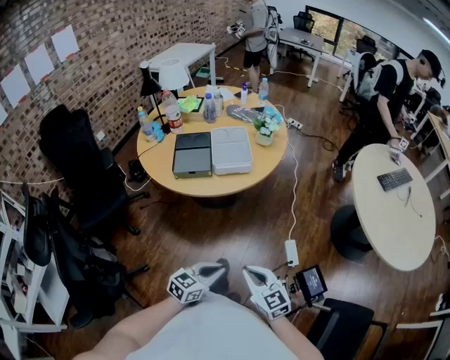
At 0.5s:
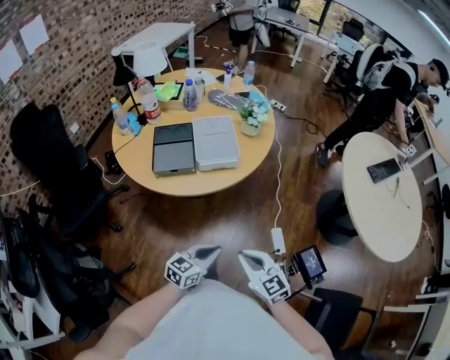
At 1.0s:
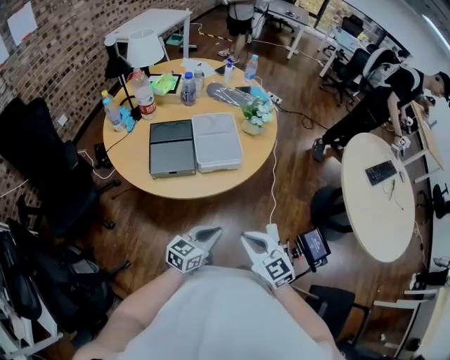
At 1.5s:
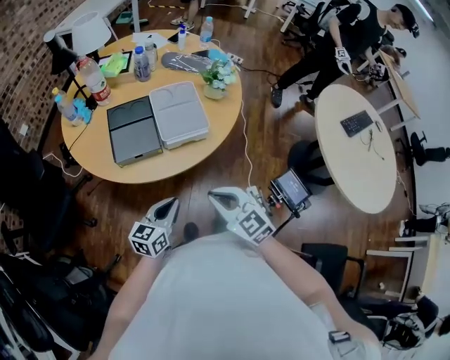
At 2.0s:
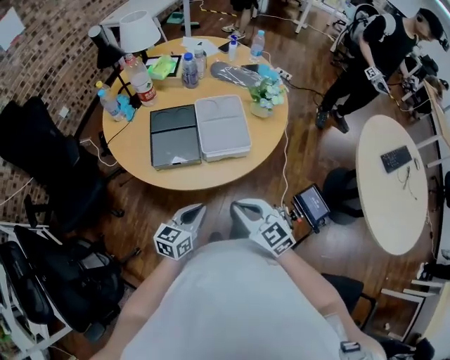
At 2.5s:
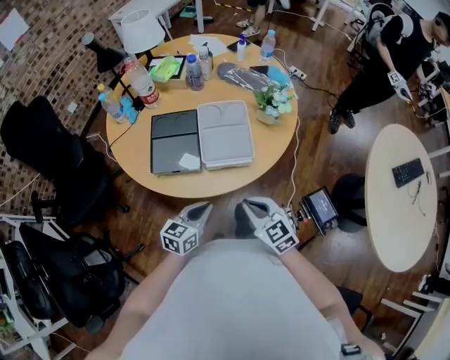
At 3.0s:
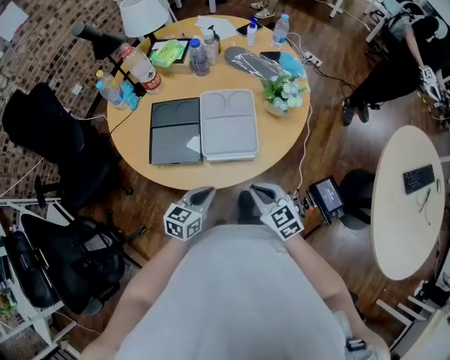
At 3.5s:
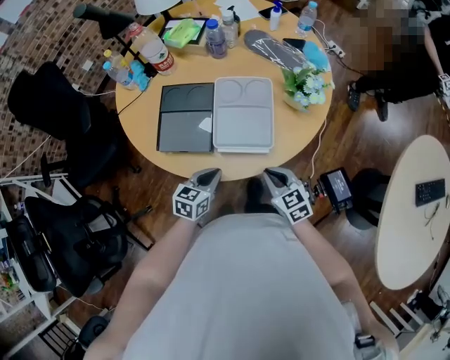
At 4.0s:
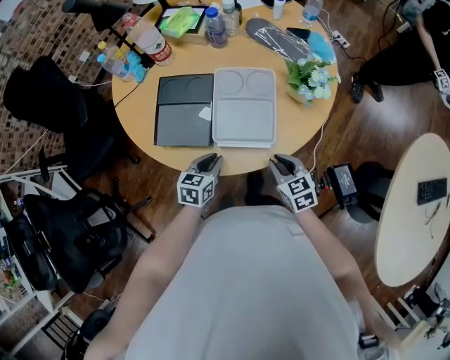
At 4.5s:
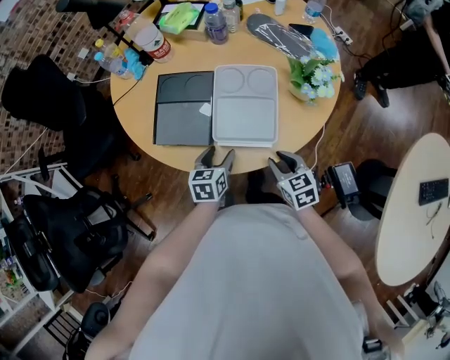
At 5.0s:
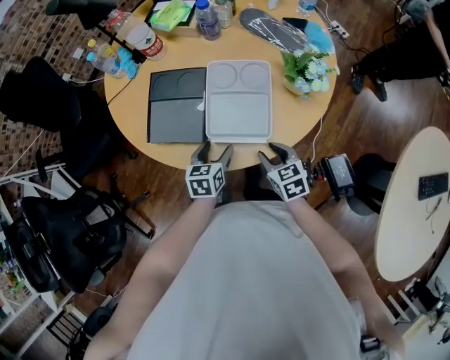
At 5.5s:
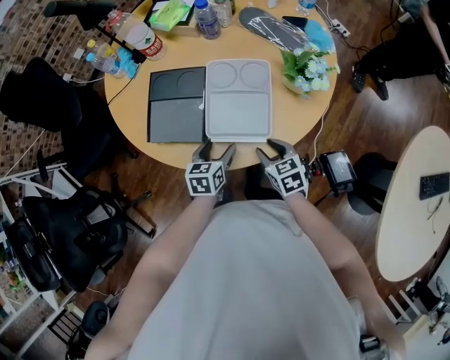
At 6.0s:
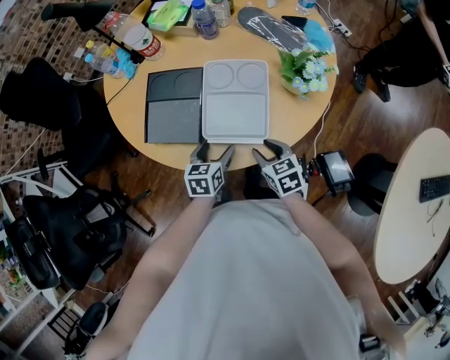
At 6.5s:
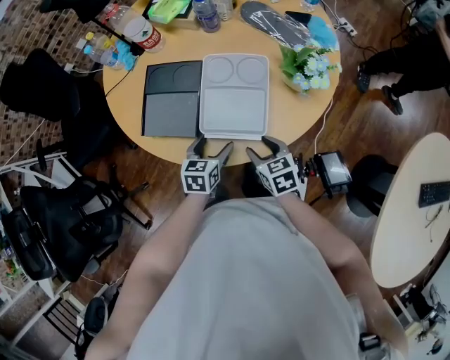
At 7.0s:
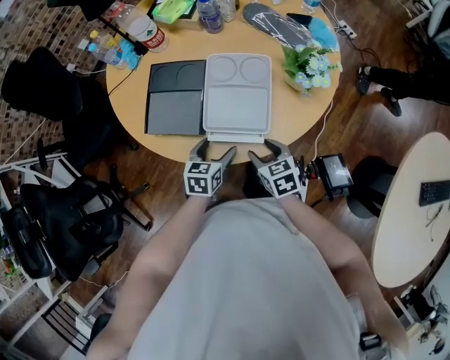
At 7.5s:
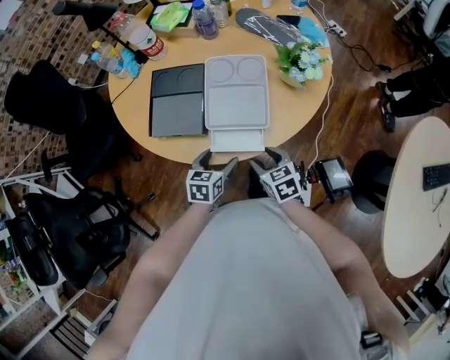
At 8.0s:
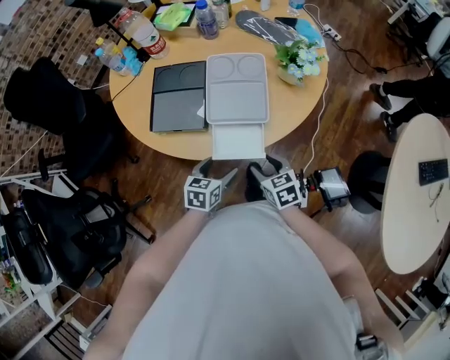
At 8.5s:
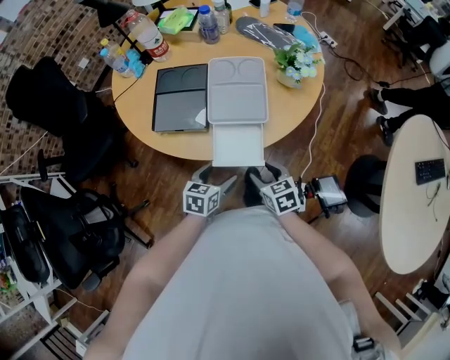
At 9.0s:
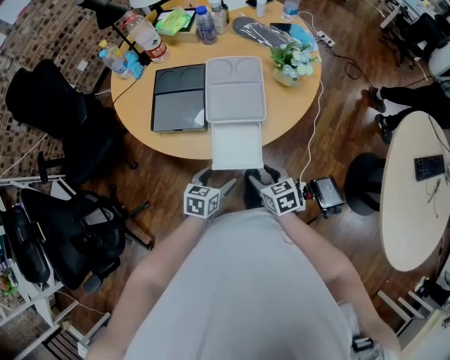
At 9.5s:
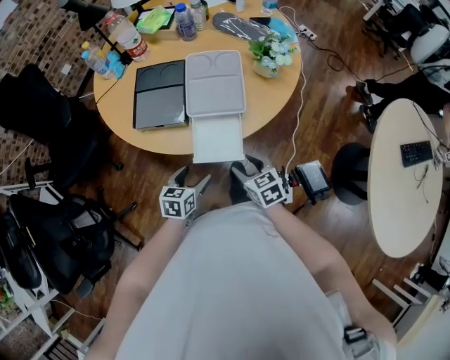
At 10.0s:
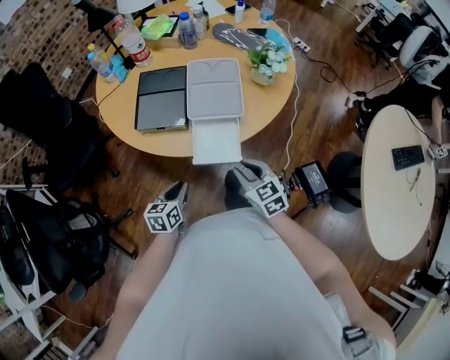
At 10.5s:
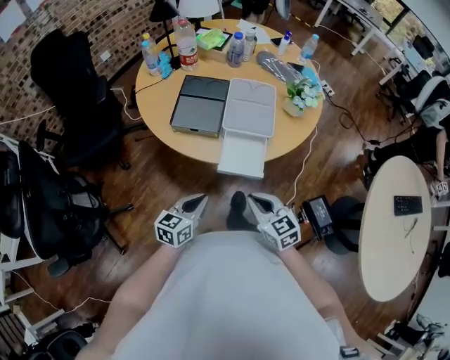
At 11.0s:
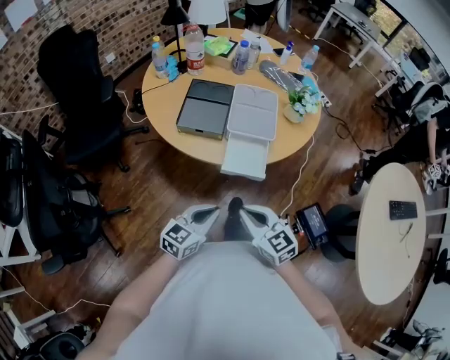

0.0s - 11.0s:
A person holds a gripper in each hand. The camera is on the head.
0.0s - 2.0s: Both grippers travel together forward, about 30 cm.
2.0s - 3.5s: The left gripper travels forward and downward by some 15 cm. Meanwhile the right gripper moves forward, downward and to the right, about 20 cm.
3.5s - 5.5s: Both grippers travel together forward, some 5 cm. The right gripper opens up; the left gripper opens up.
5.5s - 7.5s: The two grippers go some 5 cm backward.
7.5s - 9.0s: The two grippers go about 10 cm backward.
9.0s - 11.0s: The right gripper travels upward, backward and to the left by some 25 cm, changes its angle by about 30 degrees, and closes up; the left gripper moves backward and upward, about 20 cm, turns by about 30 degrees, and closes.

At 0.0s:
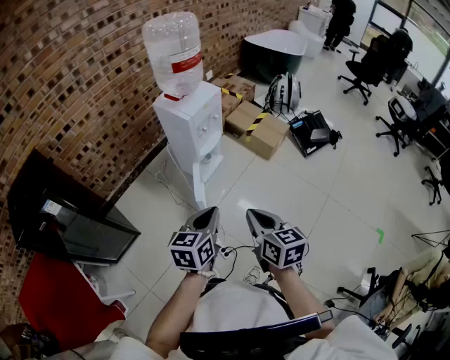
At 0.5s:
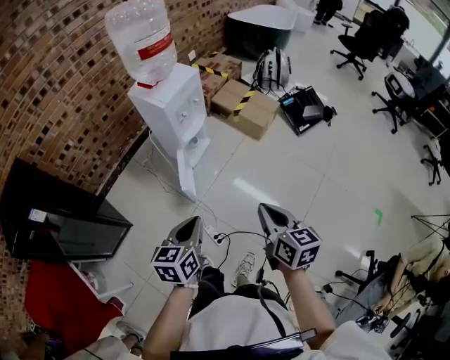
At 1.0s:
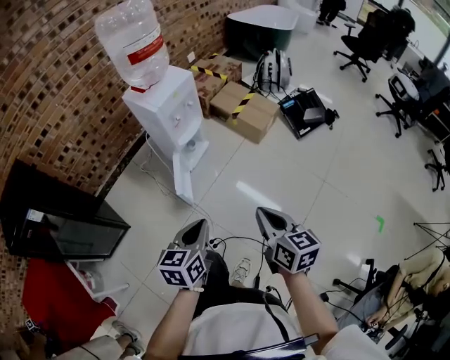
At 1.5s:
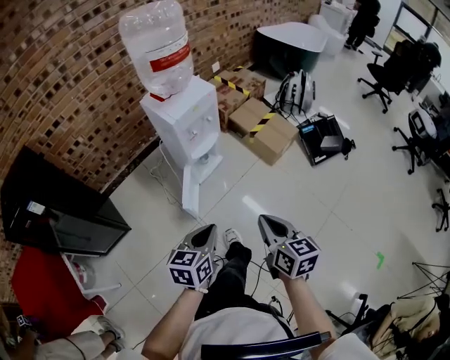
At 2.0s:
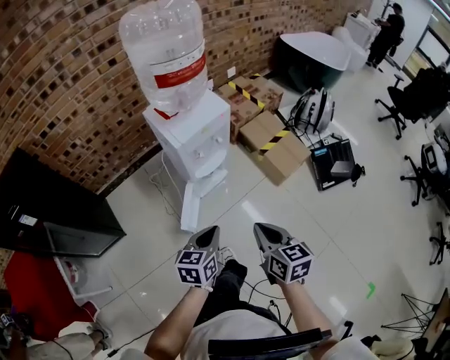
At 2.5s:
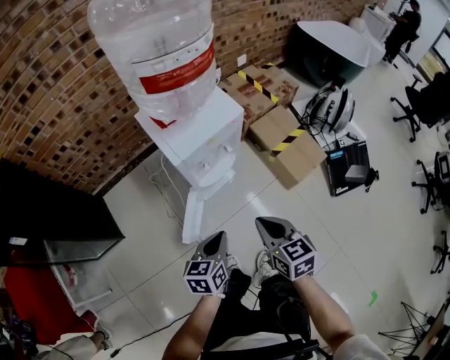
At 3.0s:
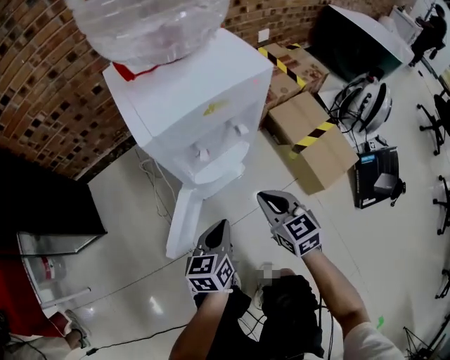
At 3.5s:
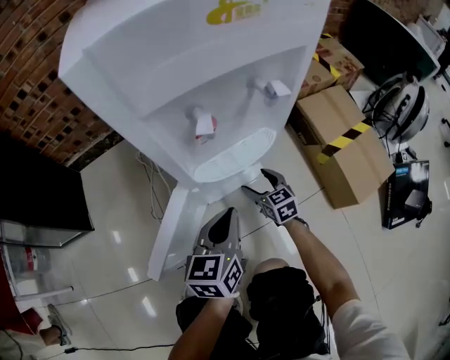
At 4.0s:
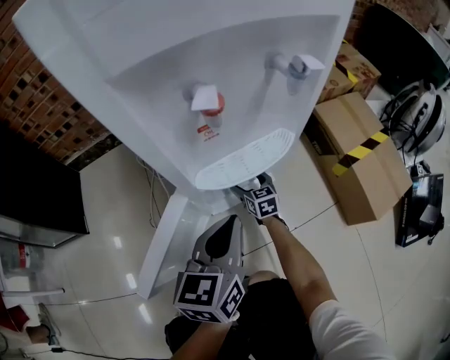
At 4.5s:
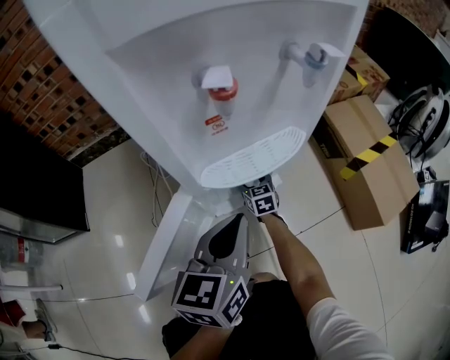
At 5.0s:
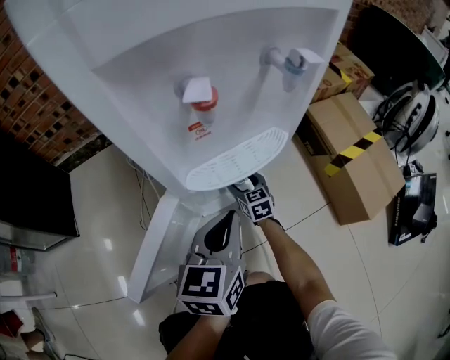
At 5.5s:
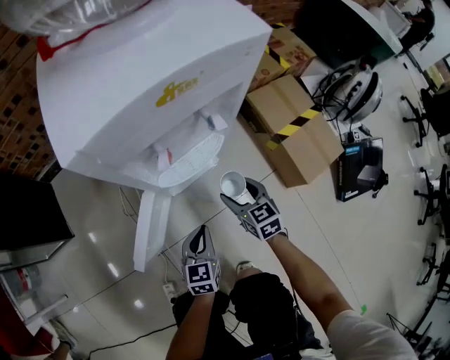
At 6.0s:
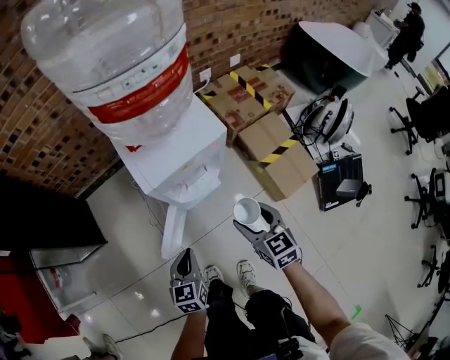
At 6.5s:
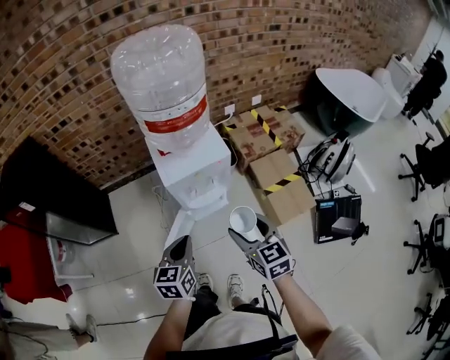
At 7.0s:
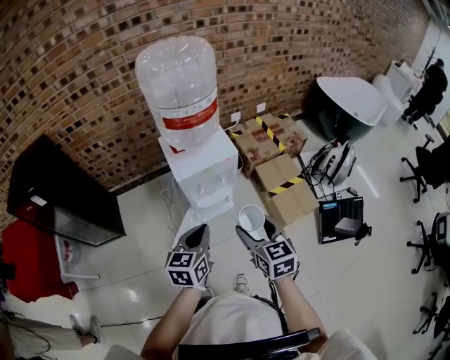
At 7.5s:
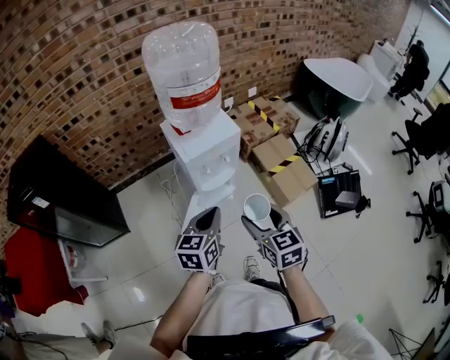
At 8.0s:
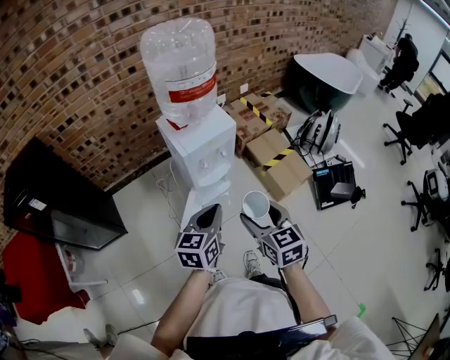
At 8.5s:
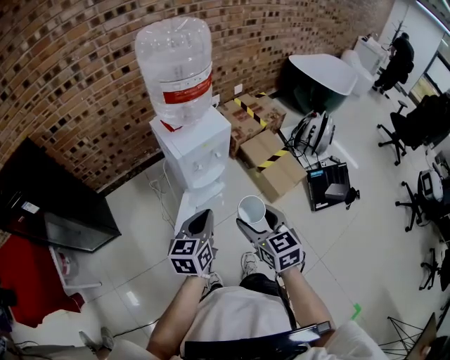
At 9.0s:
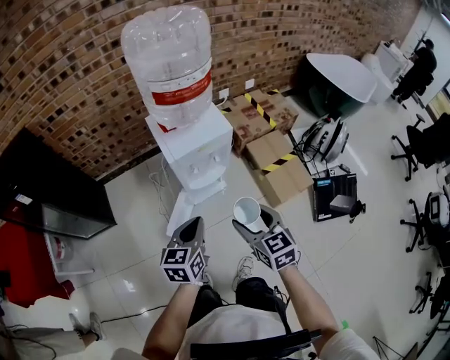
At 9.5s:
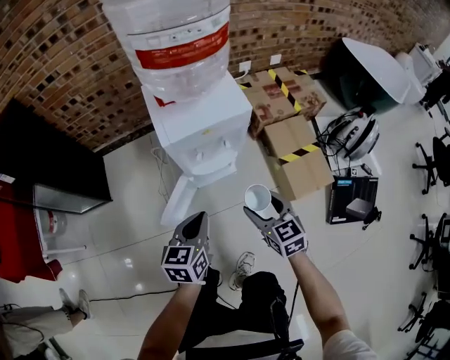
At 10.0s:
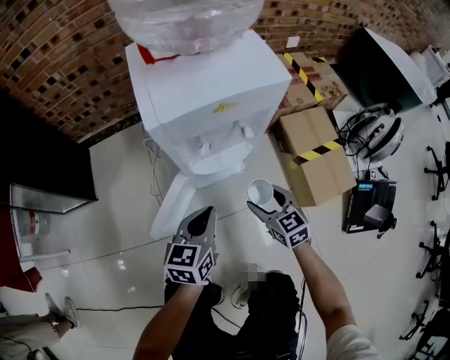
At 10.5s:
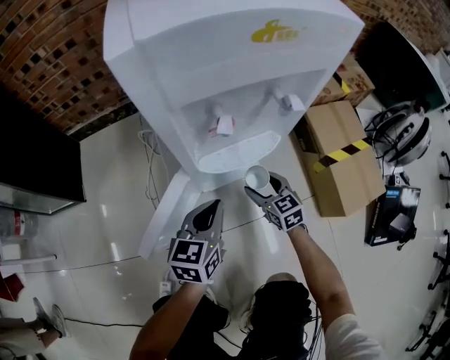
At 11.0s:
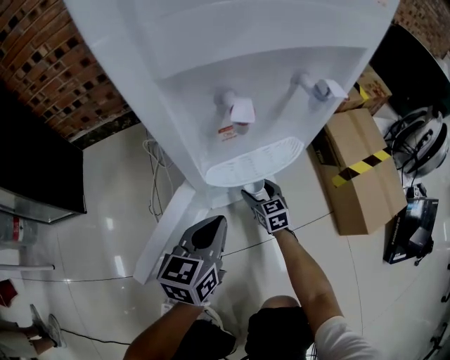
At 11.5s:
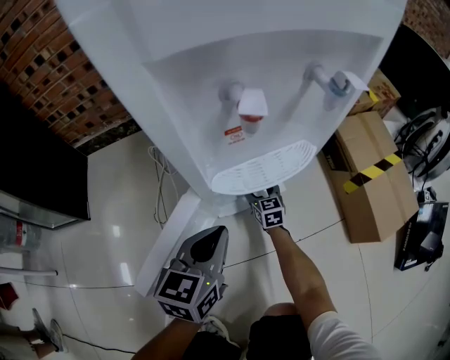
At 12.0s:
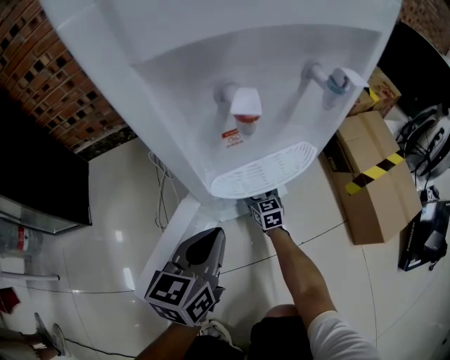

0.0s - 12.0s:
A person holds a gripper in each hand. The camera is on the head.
0.0s - 2.0s: The right gripper moves forward and to the right, some 25 cm; the left gripper goes some 25 cm forward and downward.
2.0s - 4.0s: The right gripper shifts roughly 90 cm downward and forward, changes its angle by some 30 degrees, and opens up; the left gripper shifts some 50 cm downward and forward, and changes its angle by about 30 degrees.
4.0s - 6.0s: The left gripper goes some 30 cm upward and backward, while the right gripper is displaced upward and backward by about 60 cm.
6.0s - 8.0s: The right gripper travels upward and backward by about 25 cm. The left gripper is displaced upward by about 25 cm, and turns by about 20 degrees.
8.0s - 10.0s: The two grippers go approximately 40 cm downward and forward. The right gripper swivels some 20 degrees.
10.0s - 12.0s: The right gripper travels downward and forward by roughly 50 cm; the left gripper goes roughly 20 cm downward.

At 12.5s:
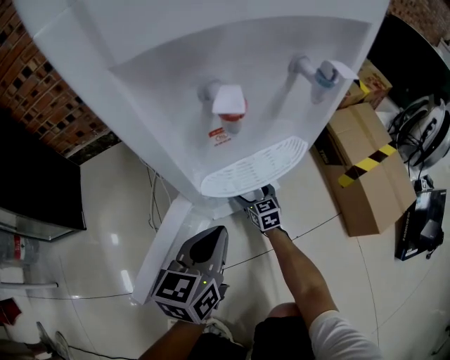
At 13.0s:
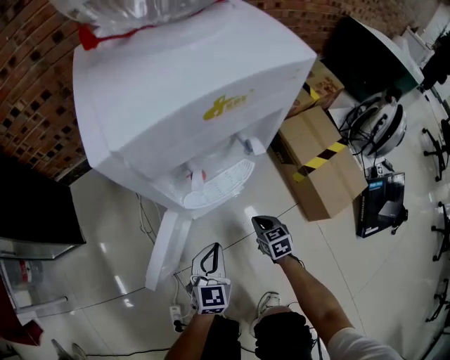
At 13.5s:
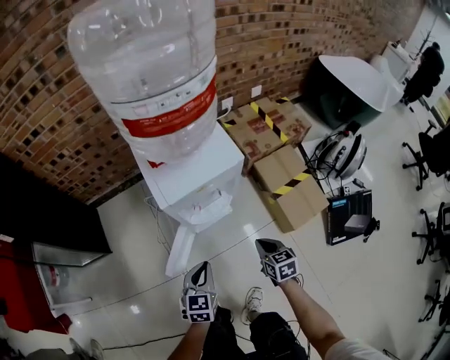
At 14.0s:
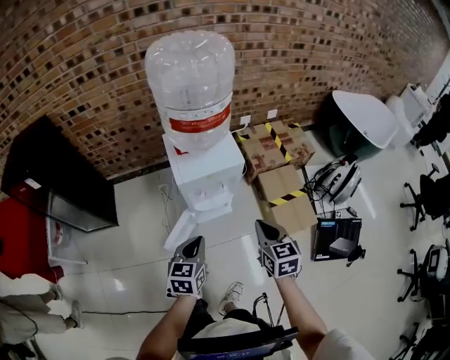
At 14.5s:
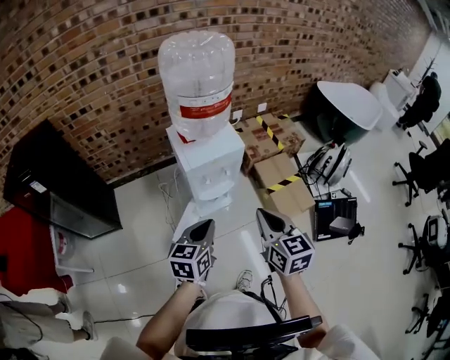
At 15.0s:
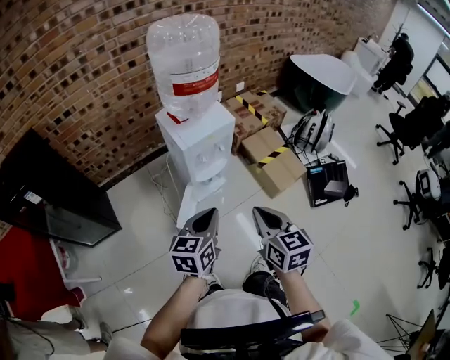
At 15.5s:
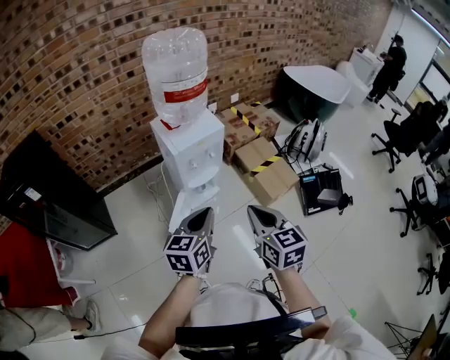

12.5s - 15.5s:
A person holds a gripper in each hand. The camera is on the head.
12.5s - 14.0s: The right gripper goes roughly 80 cm upward, and closes. Meanwhile the left gripper moves upward, some 50 cm.
14.0s - 15.5s: Both grippers move backward and upward, roughly 20 cm. The left gripper swivels approximately 20 degrees.
